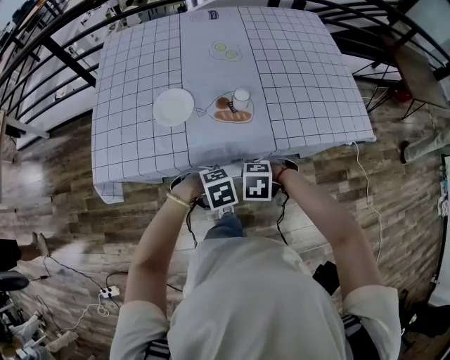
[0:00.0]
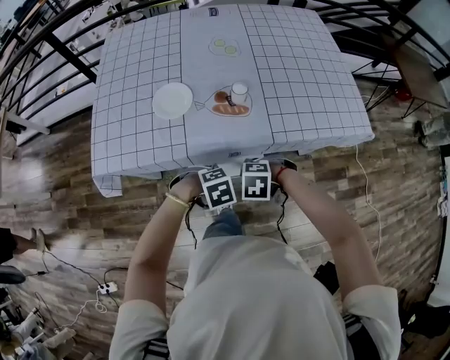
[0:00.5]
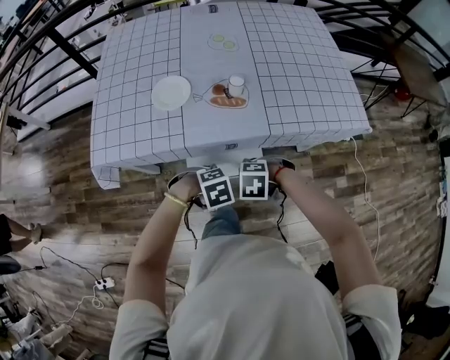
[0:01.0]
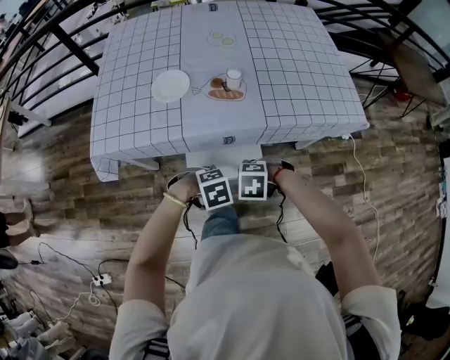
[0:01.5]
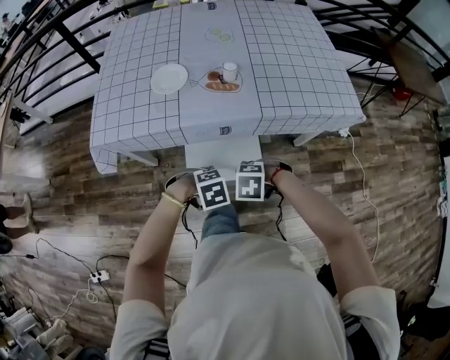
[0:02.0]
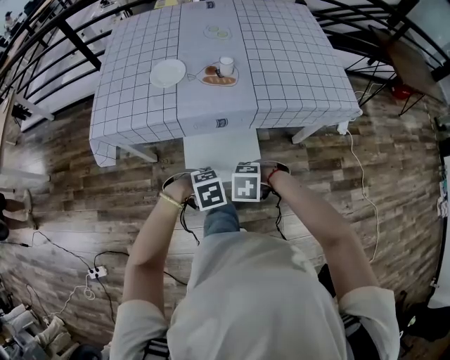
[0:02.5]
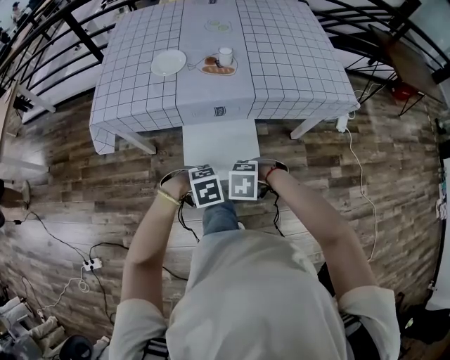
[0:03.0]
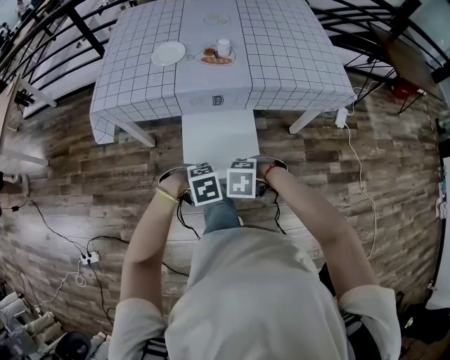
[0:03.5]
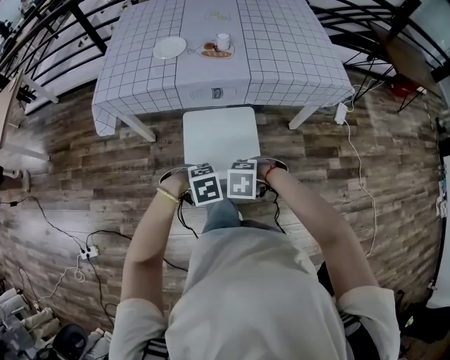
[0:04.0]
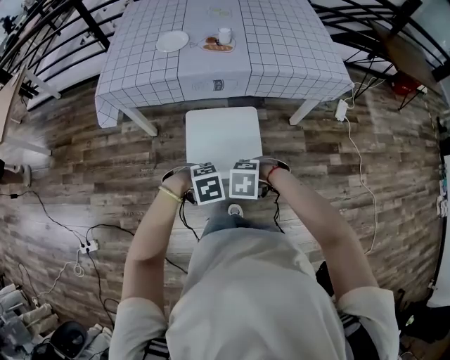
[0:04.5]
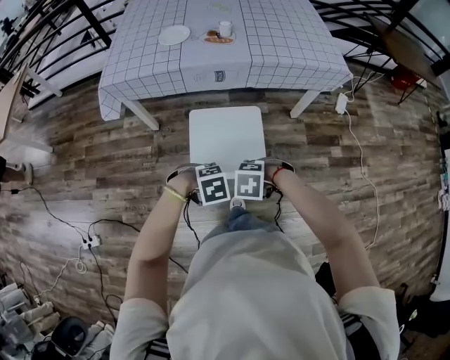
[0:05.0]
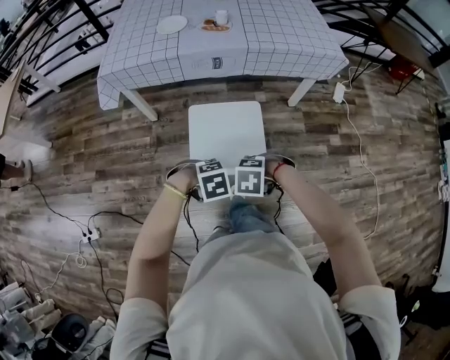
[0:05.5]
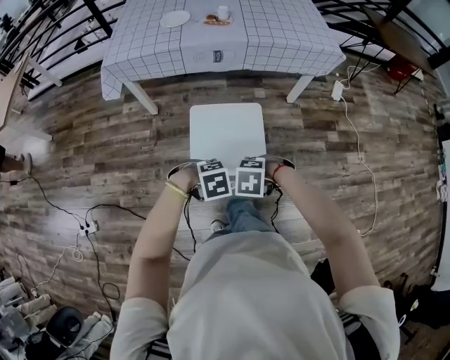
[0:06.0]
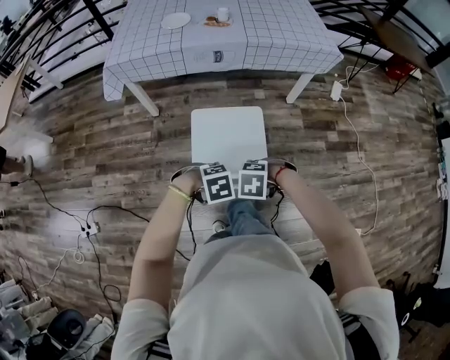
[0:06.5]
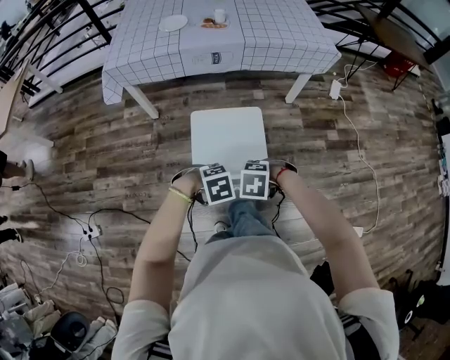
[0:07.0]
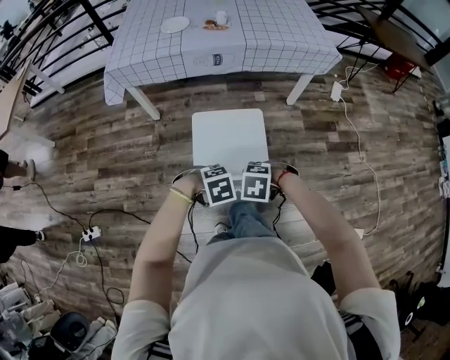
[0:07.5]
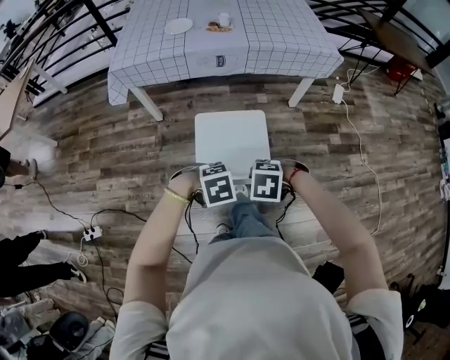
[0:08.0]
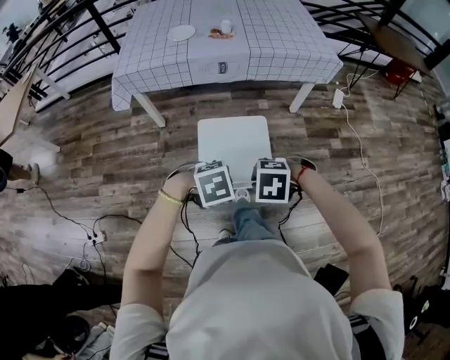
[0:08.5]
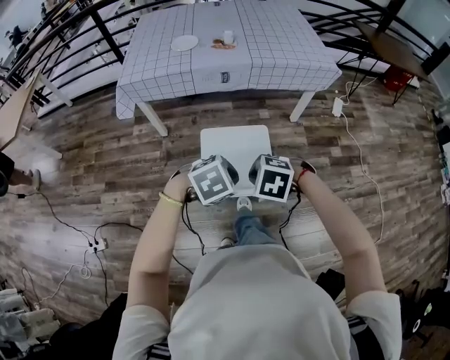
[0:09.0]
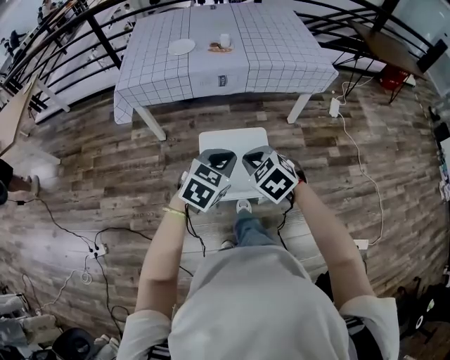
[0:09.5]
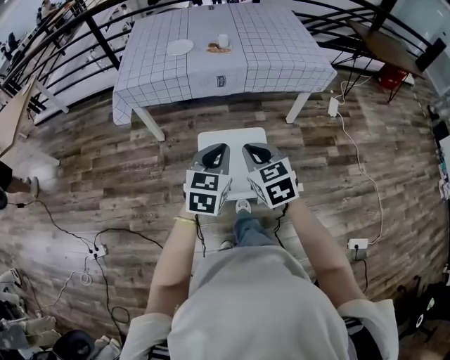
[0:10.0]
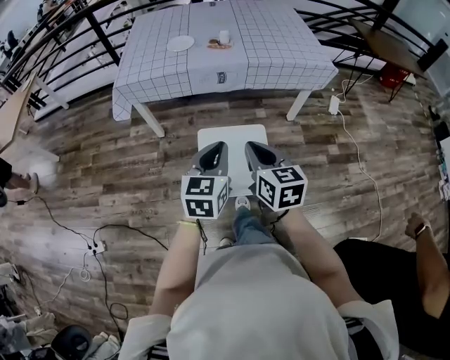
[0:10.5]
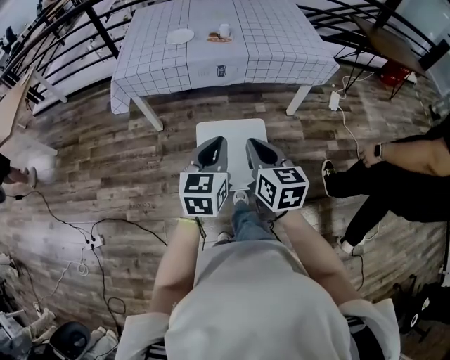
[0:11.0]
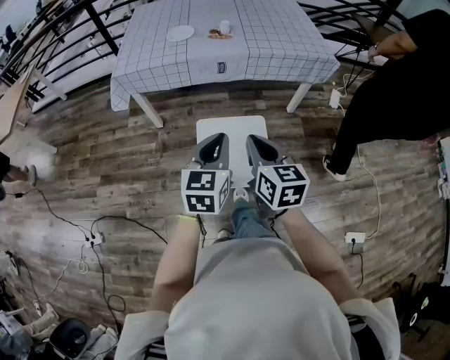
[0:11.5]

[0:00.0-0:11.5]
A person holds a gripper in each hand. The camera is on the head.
0:00.0 to 0:02.0: The left gripper changes place by some 15 cm, while the right gripper changes place by some 15 cm.
0:02.0 to 0:04.0: The right gripper changes place by some 15 cm, while the left gripper moves roughly 15 cm.
0:04.0 to 0:06.0: The left gripper ends up some 20 cm from where it was; the right gripper changes place by roughly 20 cm.
0:06.0 to 0:07.5: The grippers stay close to where they were, moving slightly.
0:07.5 to 0:09.5: The grippers both shift upward by approximately 15 cm. The right gripper swivels roughly 40 degrees, and closes up; the left gripper tilts its fingers roughly 40 degrees upward.
0:09.5 to 0:11.5: The left gripper swivels approximately 30 degrees. Meanwhile the right gripper shifts about 5 cm upward, and points its fingers approximately 30 degrees further upward.

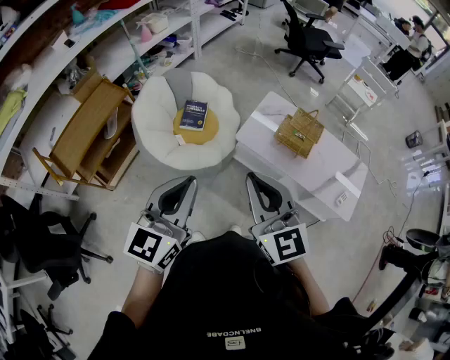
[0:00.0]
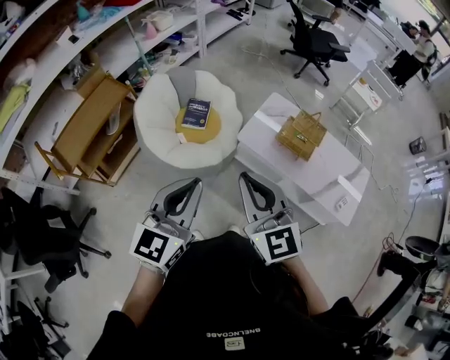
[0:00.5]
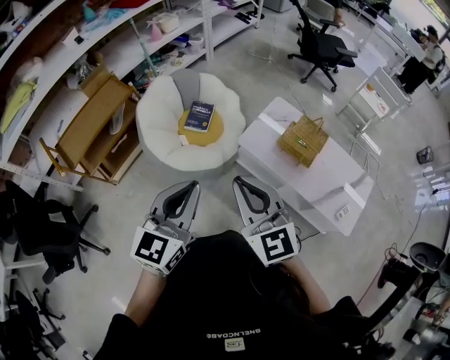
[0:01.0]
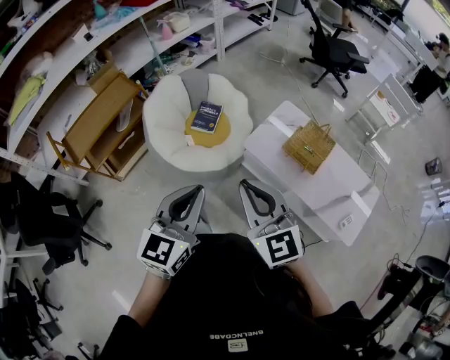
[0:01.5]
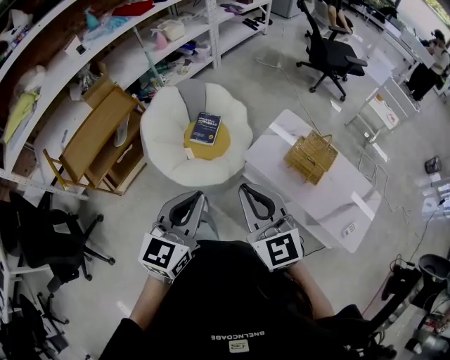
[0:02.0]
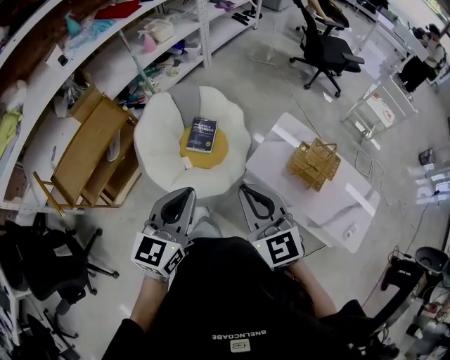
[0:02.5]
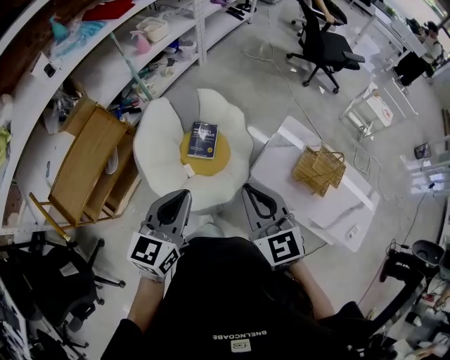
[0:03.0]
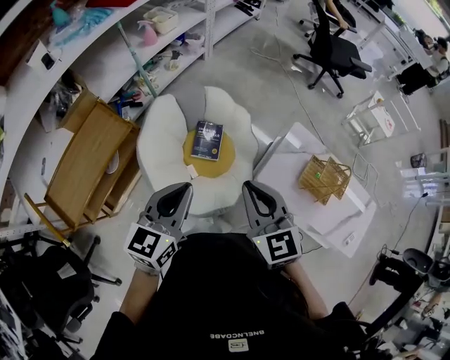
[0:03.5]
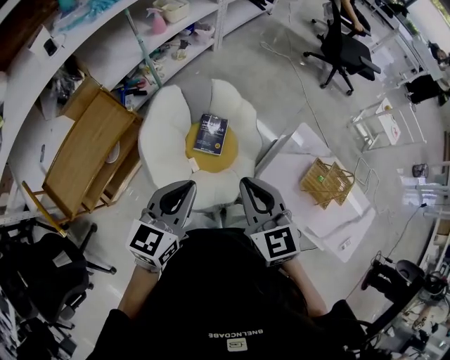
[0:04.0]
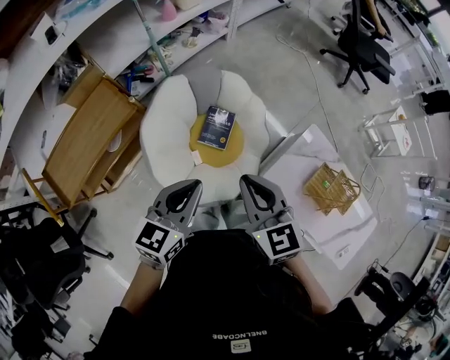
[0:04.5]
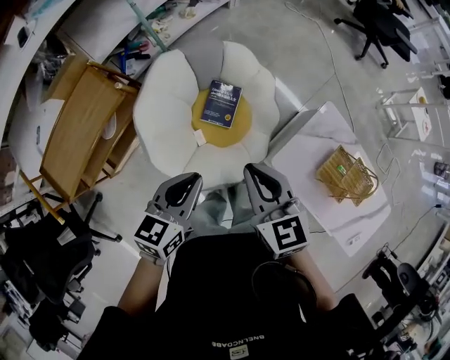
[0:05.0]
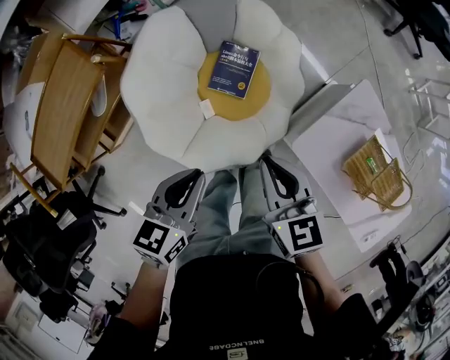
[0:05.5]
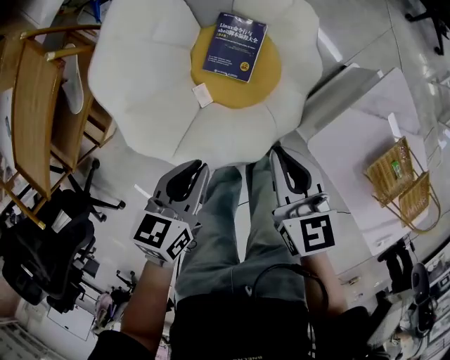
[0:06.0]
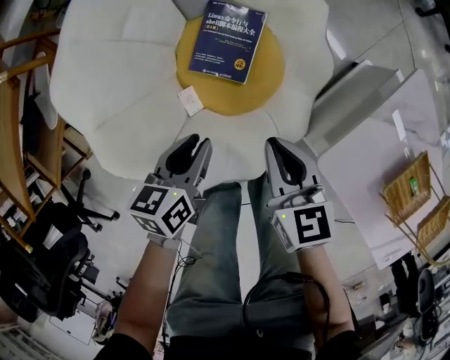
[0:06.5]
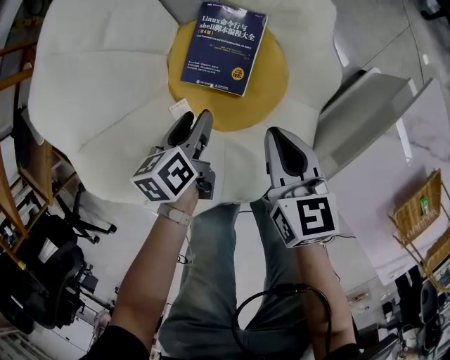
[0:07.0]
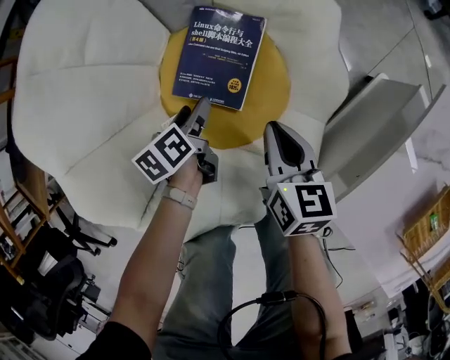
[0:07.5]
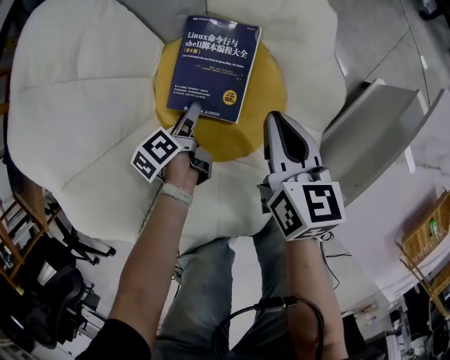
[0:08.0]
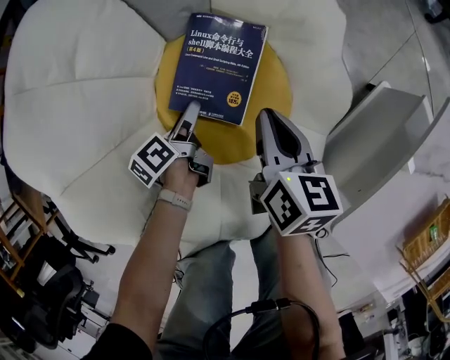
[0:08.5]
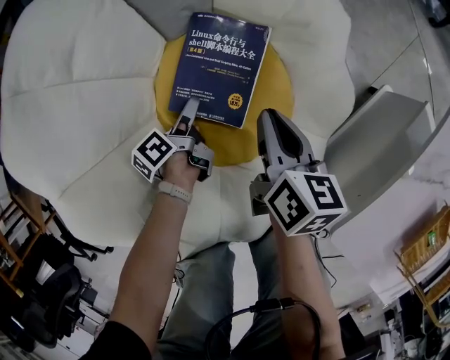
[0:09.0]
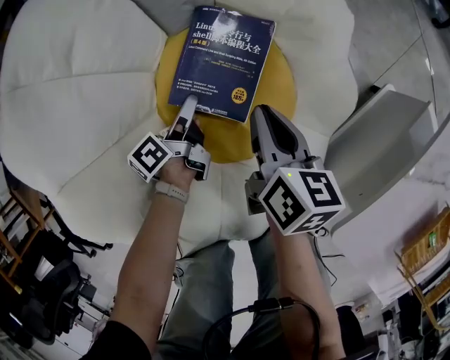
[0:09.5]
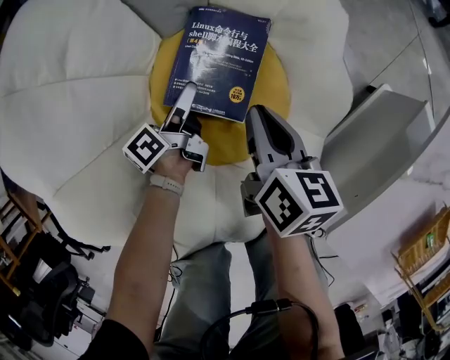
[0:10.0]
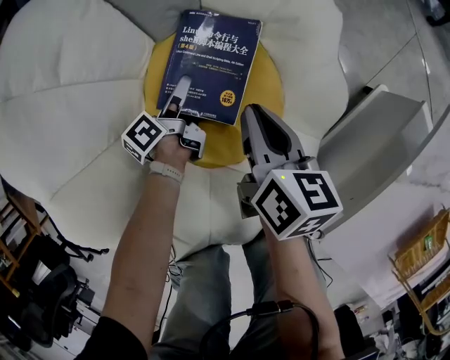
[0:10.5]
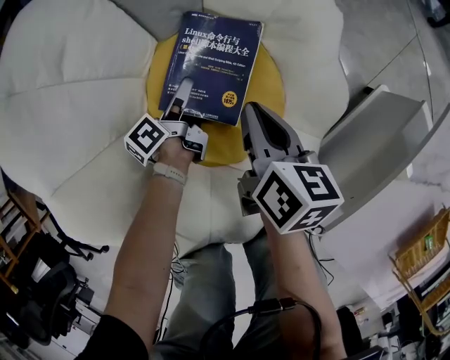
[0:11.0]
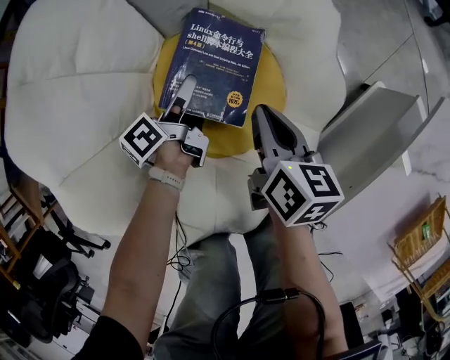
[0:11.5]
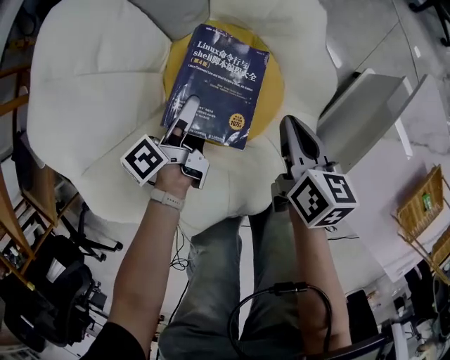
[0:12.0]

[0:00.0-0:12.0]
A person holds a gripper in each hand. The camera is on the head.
0:00.0 to 0:02.0: The right gripper moves forward, approximately 10 cm, while the left gripper moves forward, to the right and downward, roughly 10 cm.
0:02.0 to 0:04.0: Both grippers move forward and to the left, roughly 35 cm.
0:04.0 to 0:06.0: The grippers both shift downward by about 40 cm. The right gripper changes its angle by some 30 degrees. The left gripper turns by about 40 degrees.
0:06.0 to 0:08.0: The right gripper travels downward and forward by some 30 cm, while the left gripper travels downward by approximately 40 cm, rolls counterclockwise, seen from behind, by approximately 50 degrees, and opens.
0:08.0 to 0:10.0: The left gripper is displaced forward by roughly 5 cm, and changes its angle by about 20 degrees. The right gripper changes place by roughly 5 cm.
0:10.0 to 0:12.0: The left gripper heads upward, covering roughly 10 cm. The right gripper travels upward and to the right by some 10 cm.

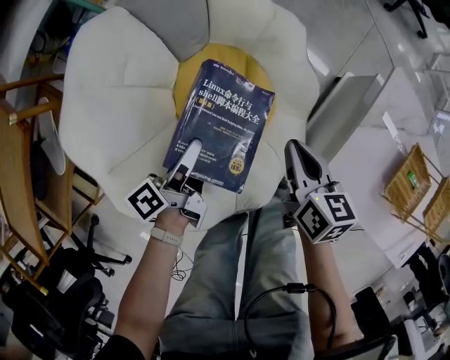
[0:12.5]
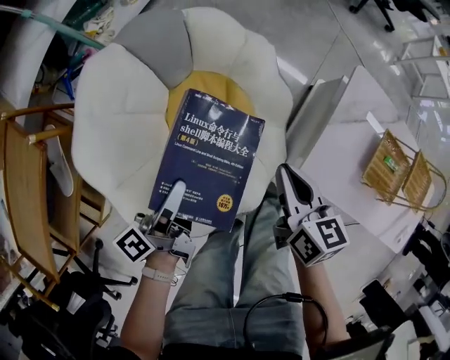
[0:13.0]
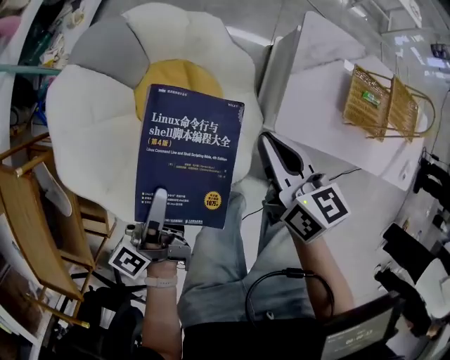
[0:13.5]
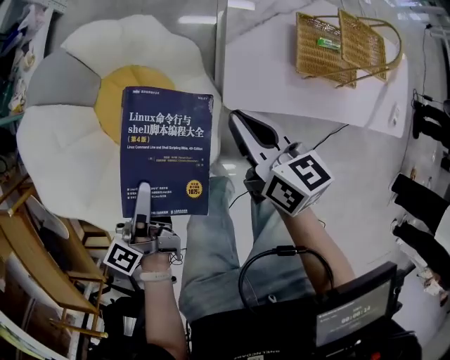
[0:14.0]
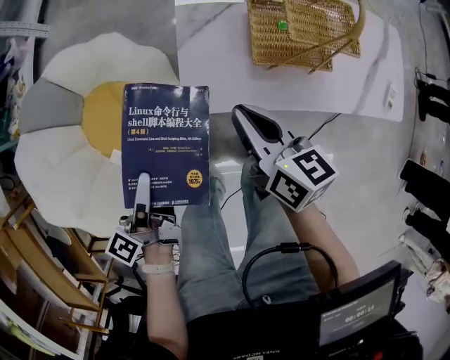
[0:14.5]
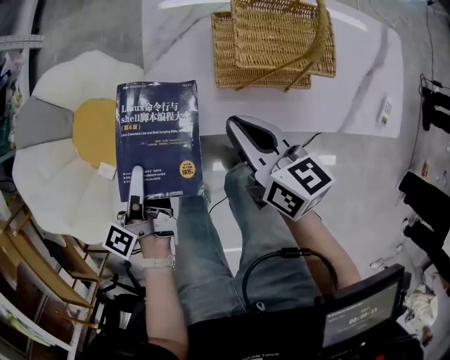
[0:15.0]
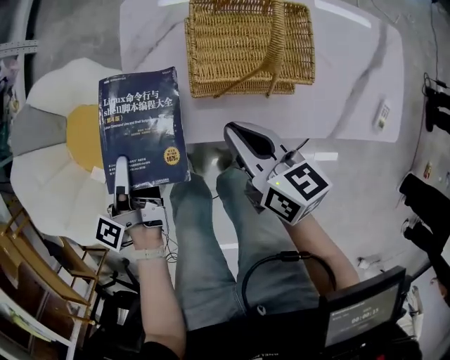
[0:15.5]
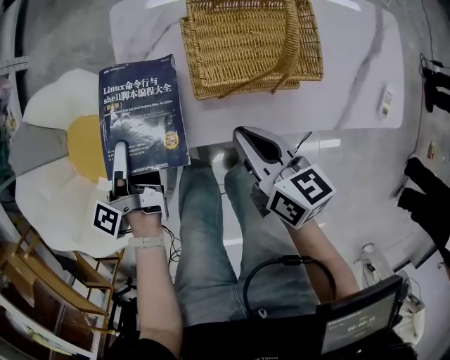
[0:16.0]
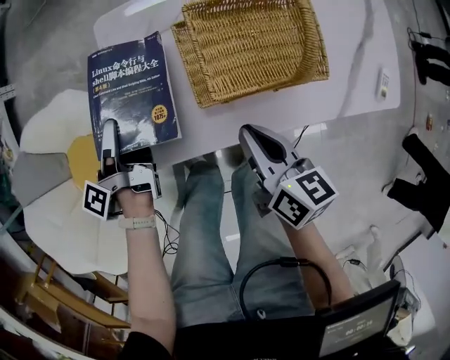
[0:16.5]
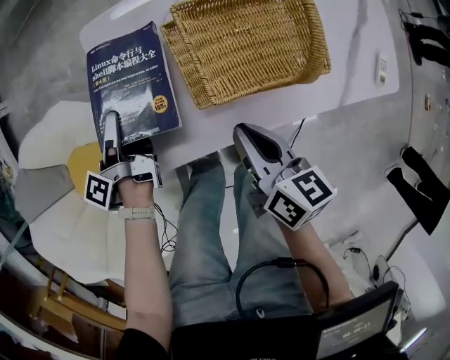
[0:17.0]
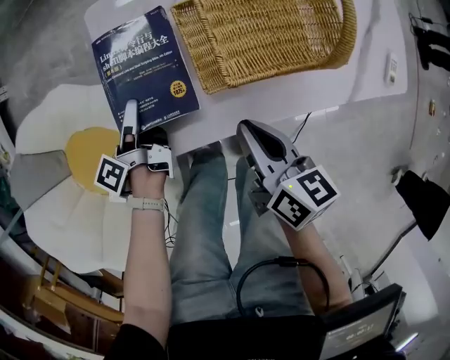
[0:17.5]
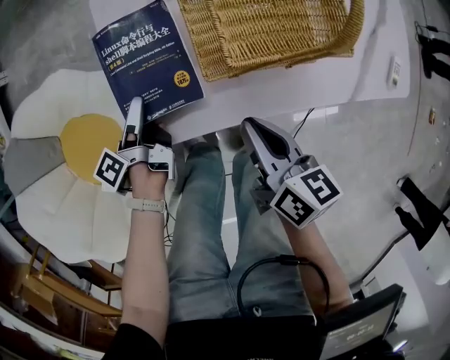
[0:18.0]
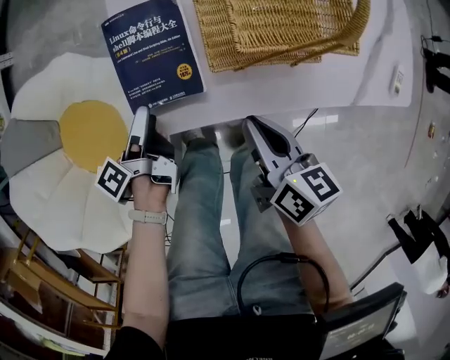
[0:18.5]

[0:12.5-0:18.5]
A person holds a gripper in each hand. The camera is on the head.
0:12.5 to 0:14.5: The right gripper moves some 5 cm.
0:14.5 to 0:16.5: The right gripper is displaced backward by some 20 cm.
0:16.5 to 0:18.5: The left gripper goes roughly 10 cm backward, and opens its fingers; the right gripper moves some 5 cm.
